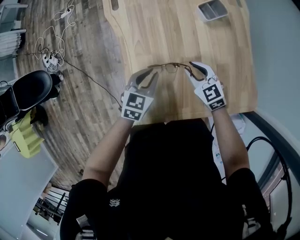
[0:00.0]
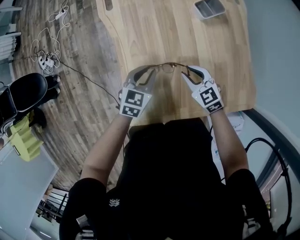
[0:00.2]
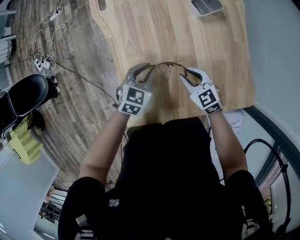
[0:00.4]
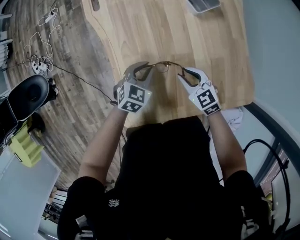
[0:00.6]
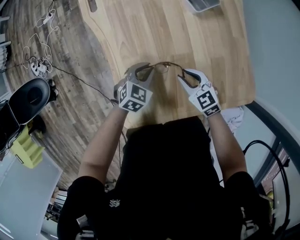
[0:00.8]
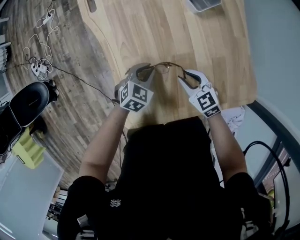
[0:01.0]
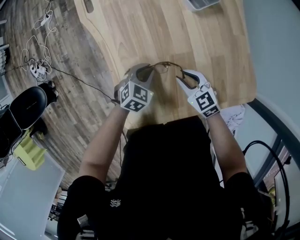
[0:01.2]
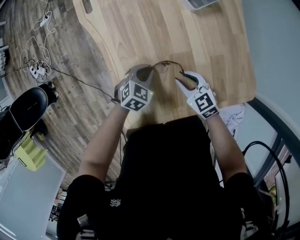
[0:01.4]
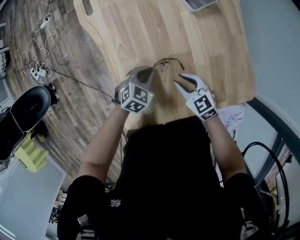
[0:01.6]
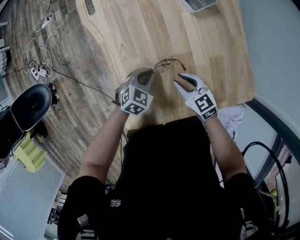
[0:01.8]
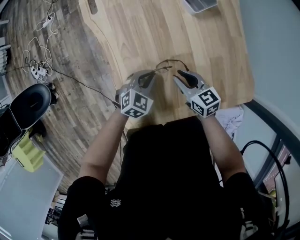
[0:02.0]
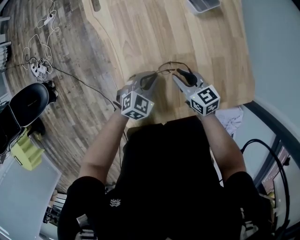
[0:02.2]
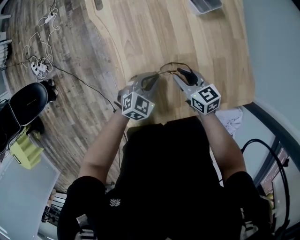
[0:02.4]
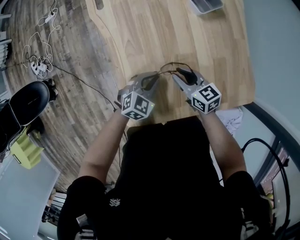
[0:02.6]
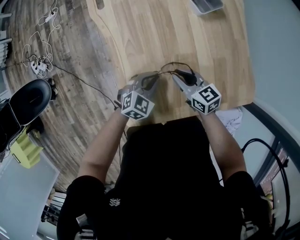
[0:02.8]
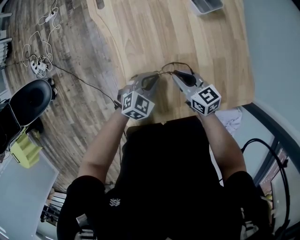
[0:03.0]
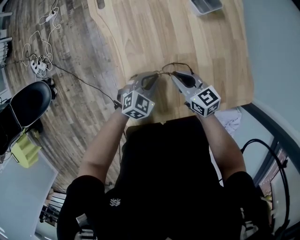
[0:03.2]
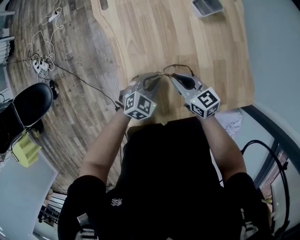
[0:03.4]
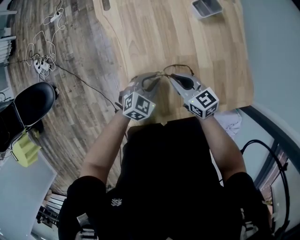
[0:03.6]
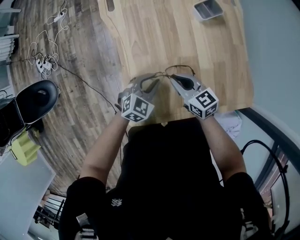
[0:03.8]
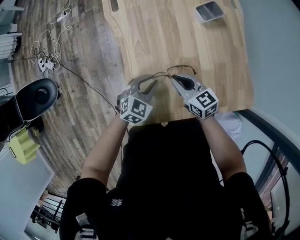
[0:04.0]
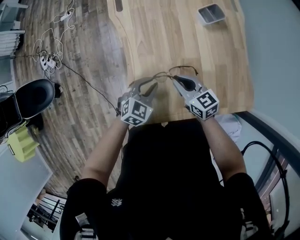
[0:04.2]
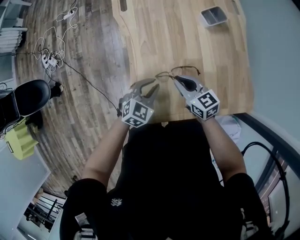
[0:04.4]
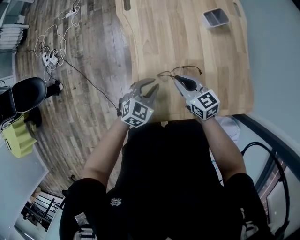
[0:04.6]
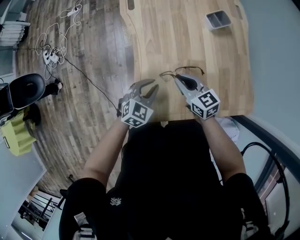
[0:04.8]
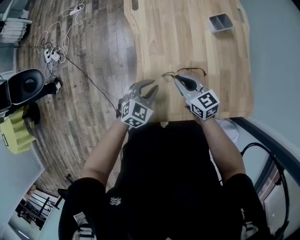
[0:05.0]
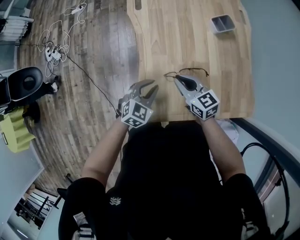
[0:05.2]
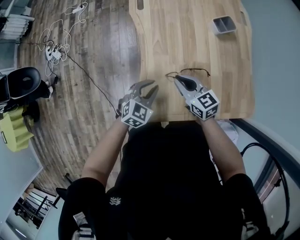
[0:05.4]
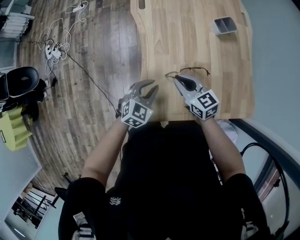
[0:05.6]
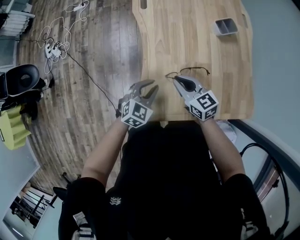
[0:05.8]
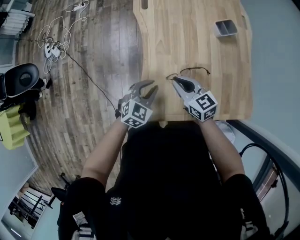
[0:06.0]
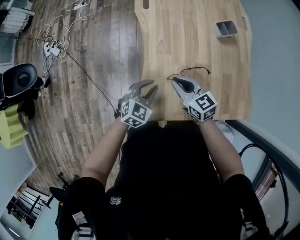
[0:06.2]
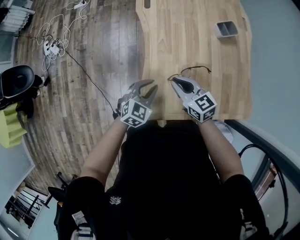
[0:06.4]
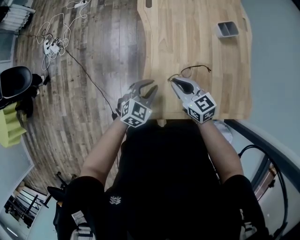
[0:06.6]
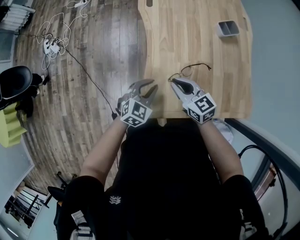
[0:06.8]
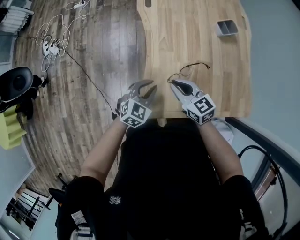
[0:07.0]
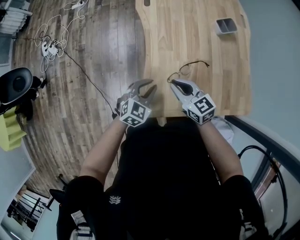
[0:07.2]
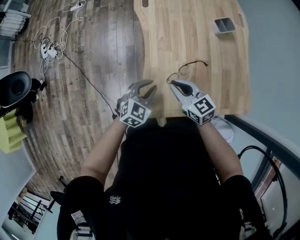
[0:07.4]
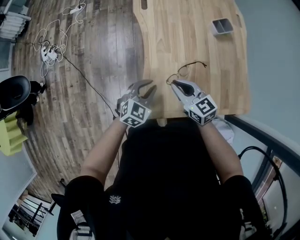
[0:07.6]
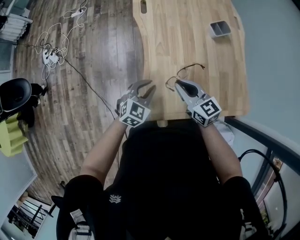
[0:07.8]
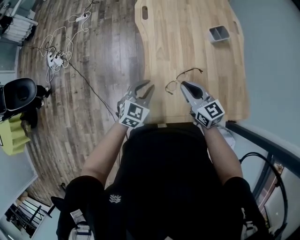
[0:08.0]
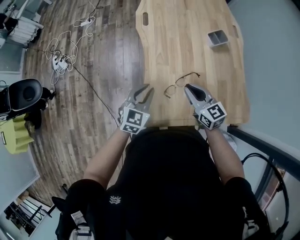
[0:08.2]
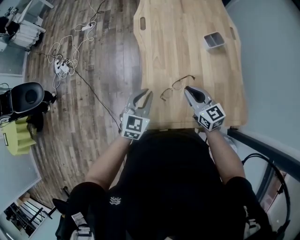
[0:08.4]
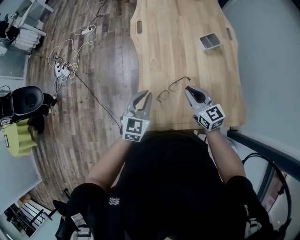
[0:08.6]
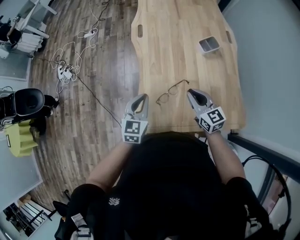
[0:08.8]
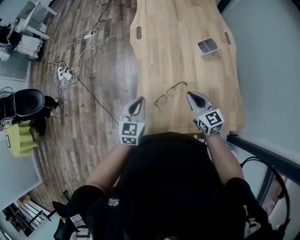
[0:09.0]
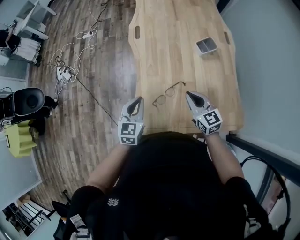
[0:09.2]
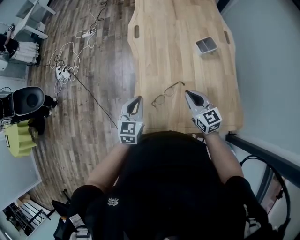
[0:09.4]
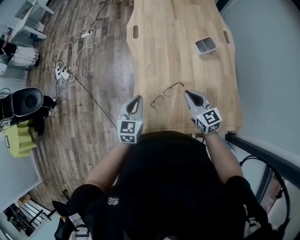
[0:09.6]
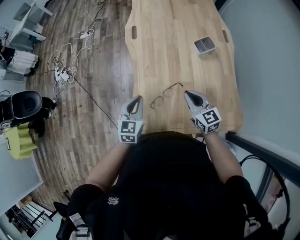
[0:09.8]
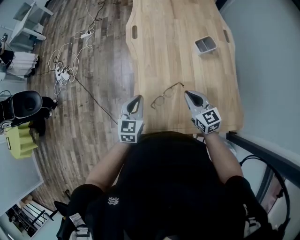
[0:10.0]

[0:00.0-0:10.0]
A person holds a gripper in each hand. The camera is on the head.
0:00.0 to 0:01.4: The left gripper is displaced downward by roughly 10 cm, and rotates some 30 degrees. Meanwhile the right gripper shifts by about 5 cm.
0:01.4 to 0:02.8: The right gripper swivels roughly 20 degrees. The left gripper ends up approximately 5 cm from where it was.
0:02.8 to 0:04.2: The right gripper shifts by approximately 5 cm. The left gripper ends up about 5 cm from where it was.
0:04.2 to 0:05.8: Both grippers travel together to the left, roughly 10 cm.
0:05.8 to 0:07.2: The right gripper shifts by approximately 5 cm.
0:07.2 to 0:08.6: The left gripper travels upward by roughly 15 cm, and changes its angle by approximately 20 degrees. Meanwhile the right gripper is displaced to the right and upward by roughly 15 cm.
0:08.6 to 0:10.0: There are only small adjustments of the grippers.

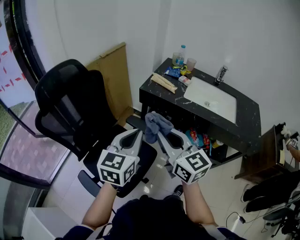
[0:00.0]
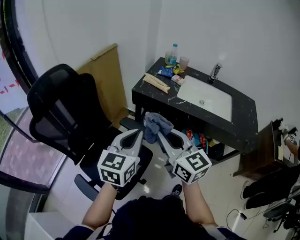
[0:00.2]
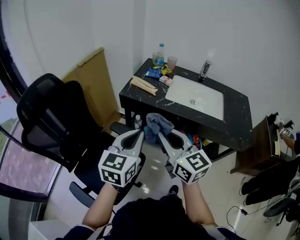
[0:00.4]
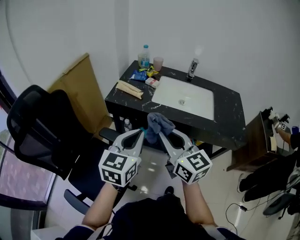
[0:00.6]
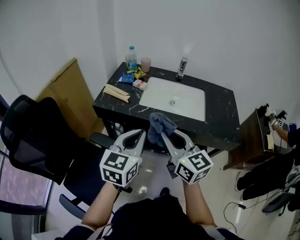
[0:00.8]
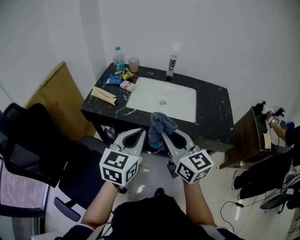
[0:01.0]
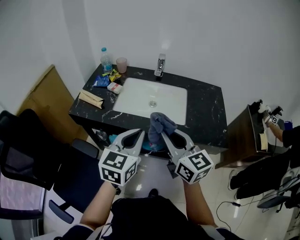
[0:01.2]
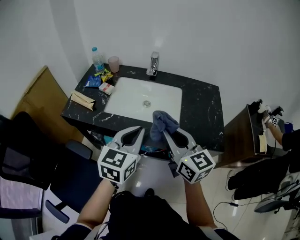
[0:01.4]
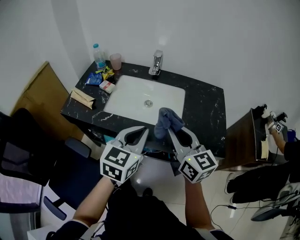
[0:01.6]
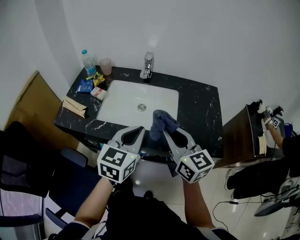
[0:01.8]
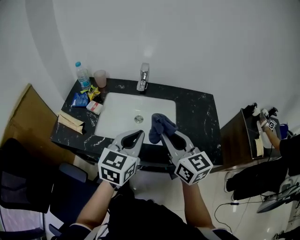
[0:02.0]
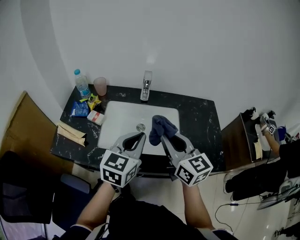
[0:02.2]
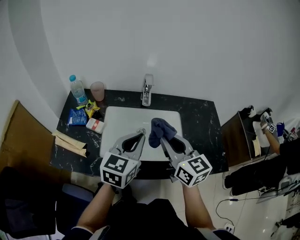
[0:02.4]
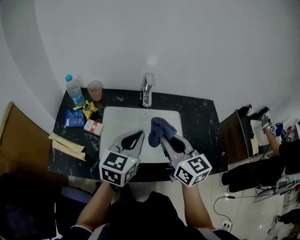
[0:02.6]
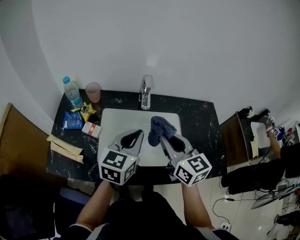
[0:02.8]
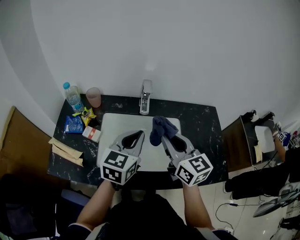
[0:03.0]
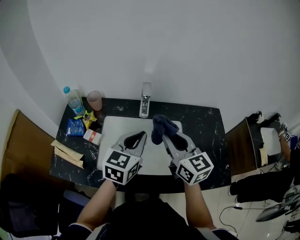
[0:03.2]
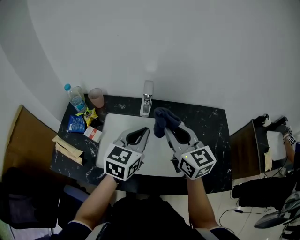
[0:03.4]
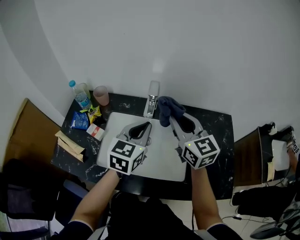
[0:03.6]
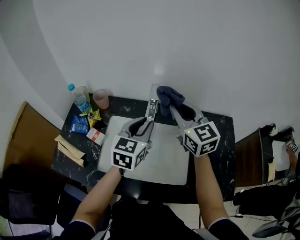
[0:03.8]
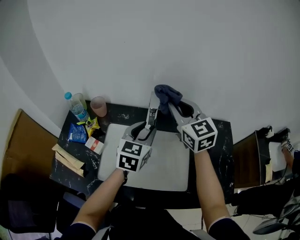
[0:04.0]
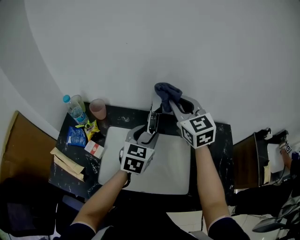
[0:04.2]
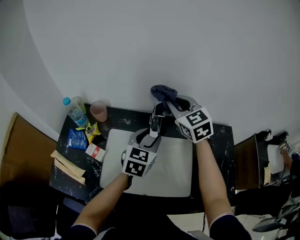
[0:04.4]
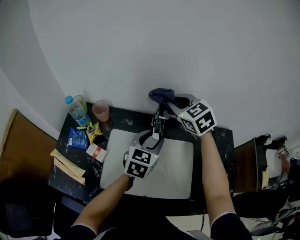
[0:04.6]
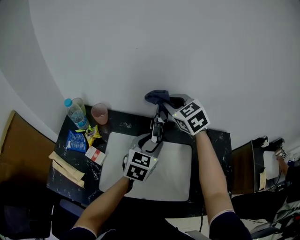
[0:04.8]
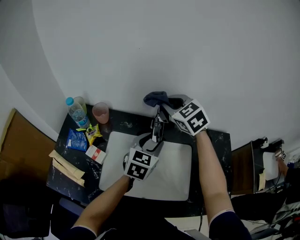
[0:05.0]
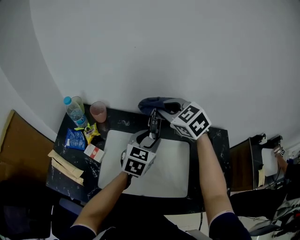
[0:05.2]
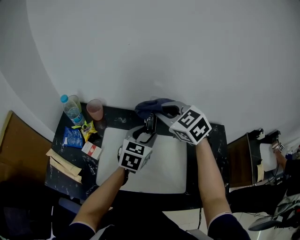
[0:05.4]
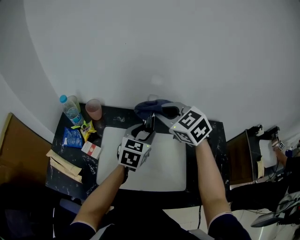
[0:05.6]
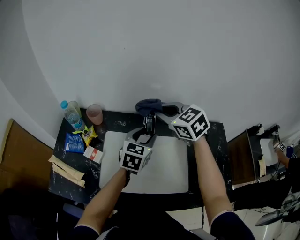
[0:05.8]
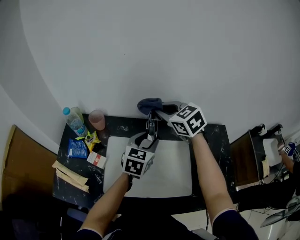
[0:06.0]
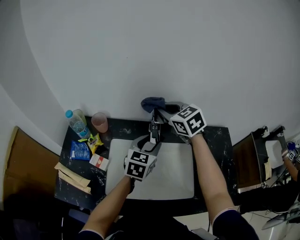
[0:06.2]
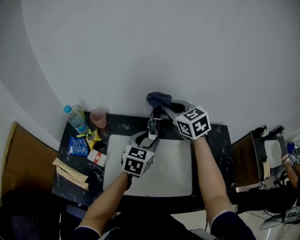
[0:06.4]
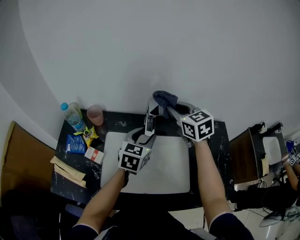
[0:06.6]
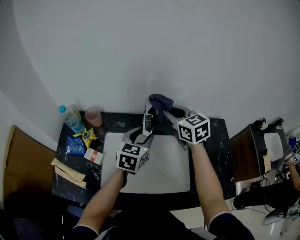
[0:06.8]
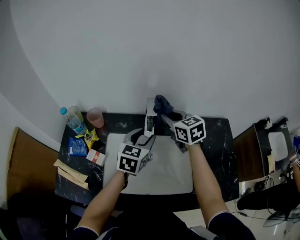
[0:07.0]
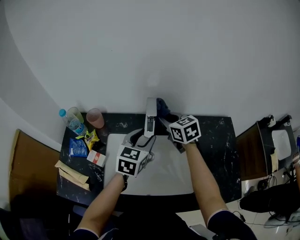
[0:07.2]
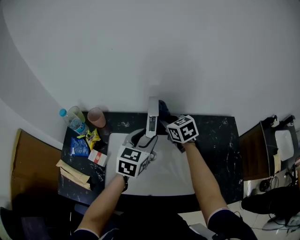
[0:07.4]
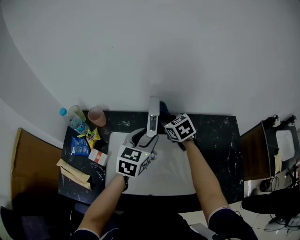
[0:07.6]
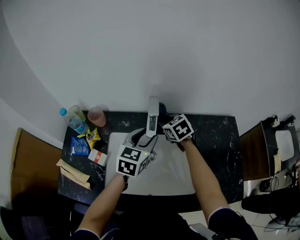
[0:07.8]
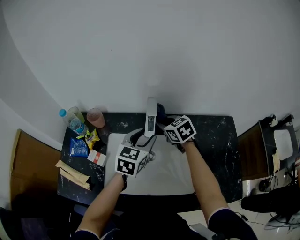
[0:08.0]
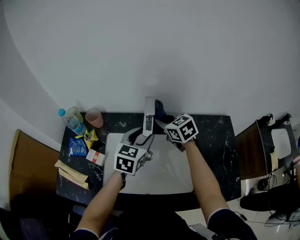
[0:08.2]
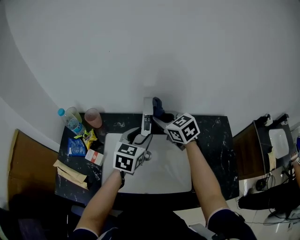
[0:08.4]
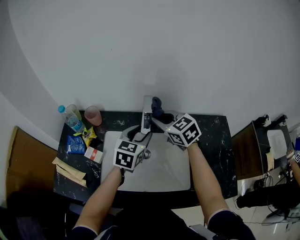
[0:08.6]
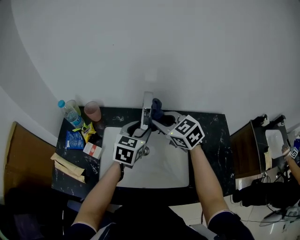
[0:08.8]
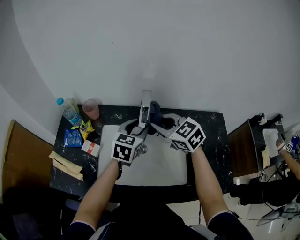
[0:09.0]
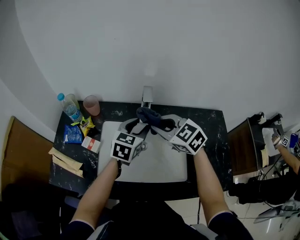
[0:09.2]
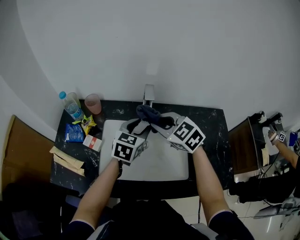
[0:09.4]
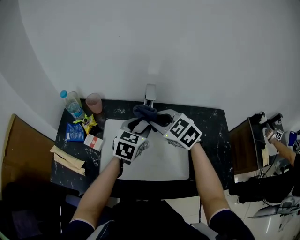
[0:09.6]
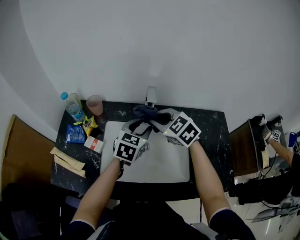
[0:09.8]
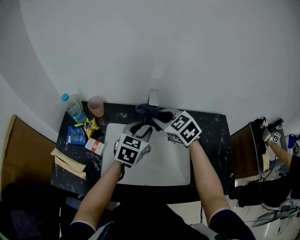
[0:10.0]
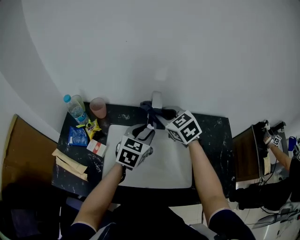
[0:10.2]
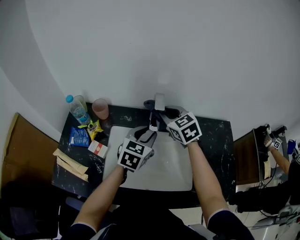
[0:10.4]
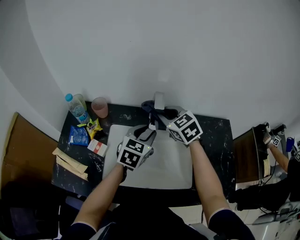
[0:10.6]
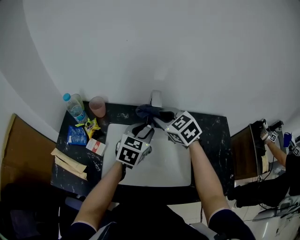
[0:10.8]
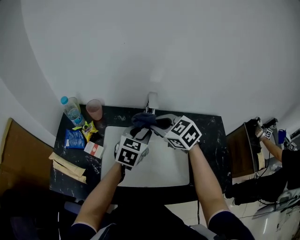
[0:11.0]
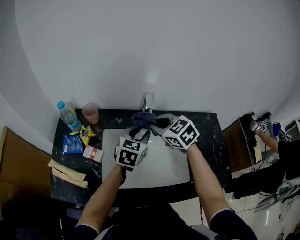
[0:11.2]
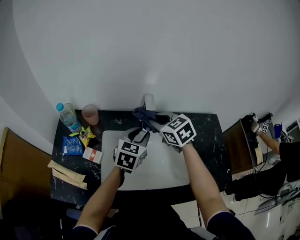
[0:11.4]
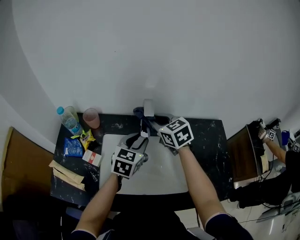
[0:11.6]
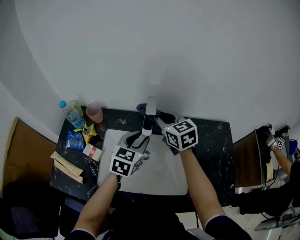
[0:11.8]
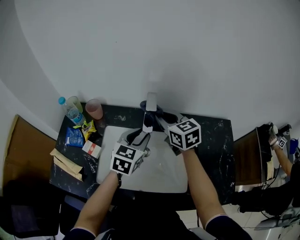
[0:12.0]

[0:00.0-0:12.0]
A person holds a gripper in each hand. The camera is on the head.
0:00.0 to 0:01.6: Both grippers are carried to the right and forward, about 50 cm. The right gripper swivels approximately 20 degrees; the left gripper swivels some 20 degrees.
0:01.6 to 0:03.0: The two grippers go some 20 cm forward.
0:03.0 to 0:04.4: The left gripper travels forward and downward by about 15 cm, and opens up; the right gripper travels forward by about 25 cm, and swivels approximately 30 degrees.
0:04.4 to 0:06.0: The right gripper moves approximately 5 cm backward and comes back.
0:06.0 to 0:07.6: The right gripper travels downward by about 15 cm.
0:07.6 to 0:09.0: The right gripper travels upward and backward by roughly 15 cm, and turns by about 20 degrees.
0:09.0 to 0:10.4: The right gripper is displaced forward by about 10 cm.

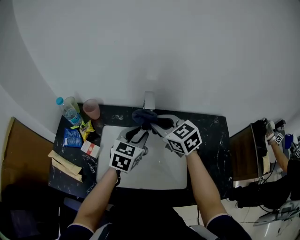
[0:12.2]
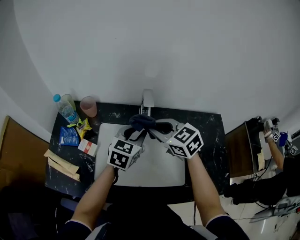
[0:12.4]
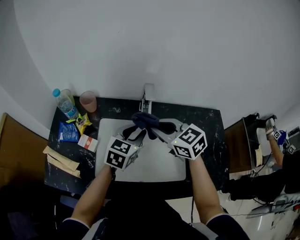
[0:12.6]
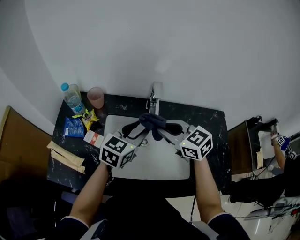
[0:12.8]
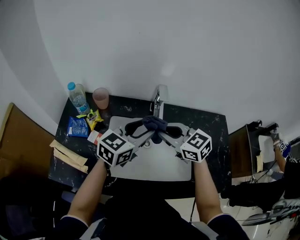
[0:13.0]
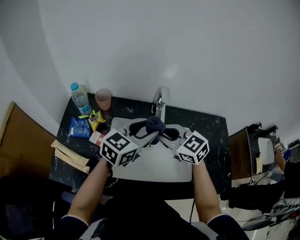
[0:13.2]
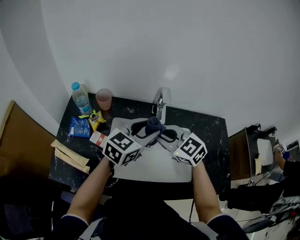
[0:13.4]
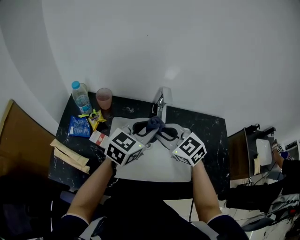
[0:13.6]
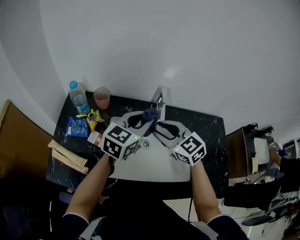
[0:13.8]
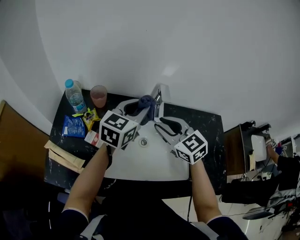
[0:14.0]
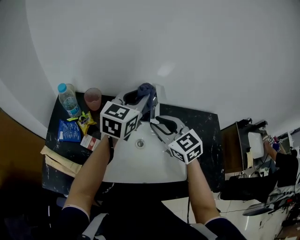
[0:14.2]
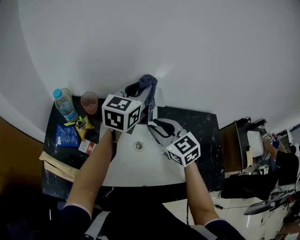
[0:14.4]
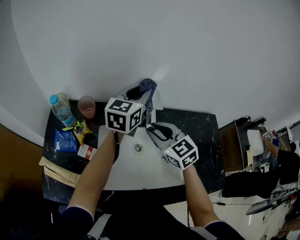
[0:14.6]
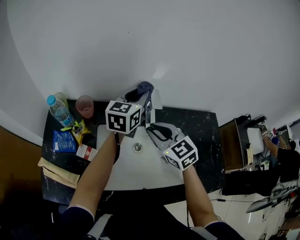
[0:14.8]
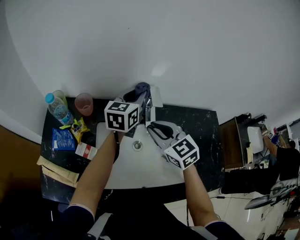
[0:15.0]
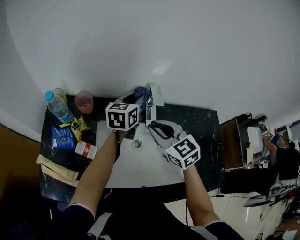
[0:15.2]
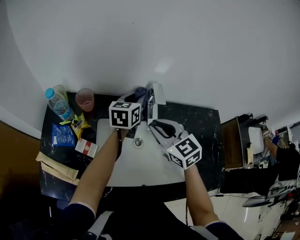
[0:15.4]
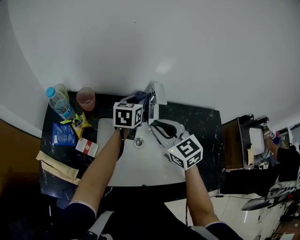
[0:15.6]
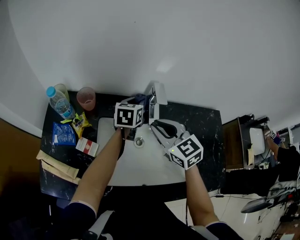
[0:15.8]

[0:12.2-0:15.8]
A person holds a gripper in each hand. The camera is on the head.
0:12.2 to 0:14.0: The left gripper moves upward and to the left, roughly 10 cm.
0:14.0 to 0:15.8: The left gripper goes about 15 cm downward and forward, and changes its angle by about 20 degrees.
